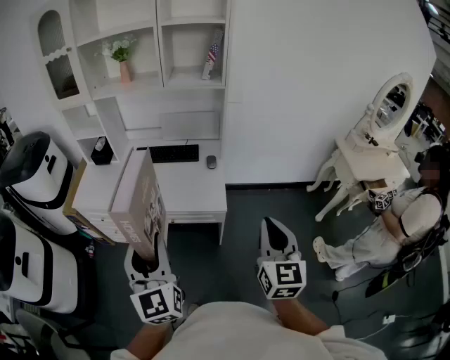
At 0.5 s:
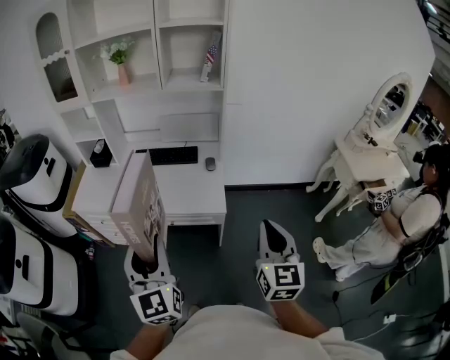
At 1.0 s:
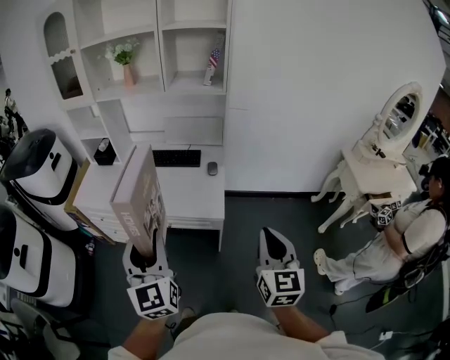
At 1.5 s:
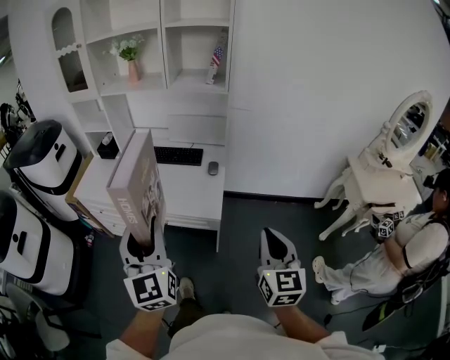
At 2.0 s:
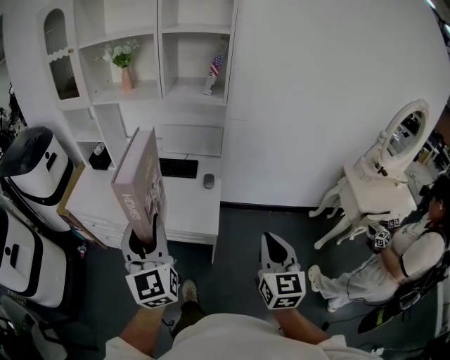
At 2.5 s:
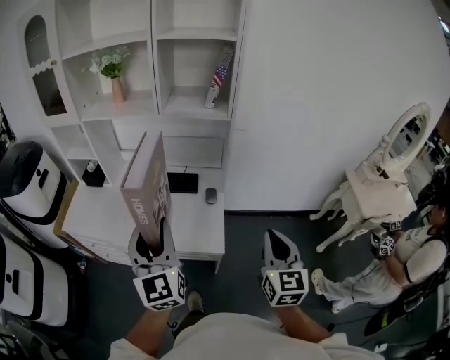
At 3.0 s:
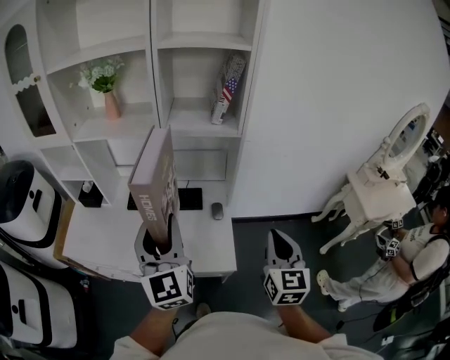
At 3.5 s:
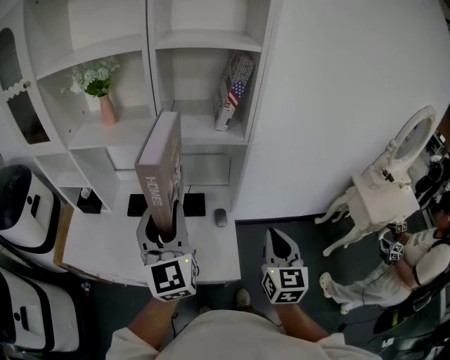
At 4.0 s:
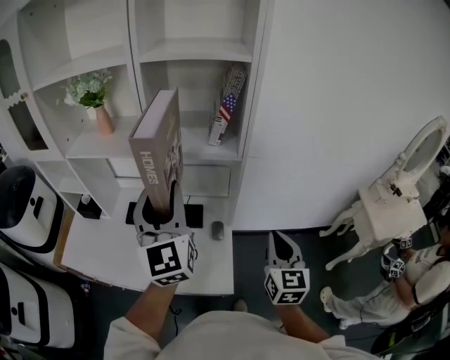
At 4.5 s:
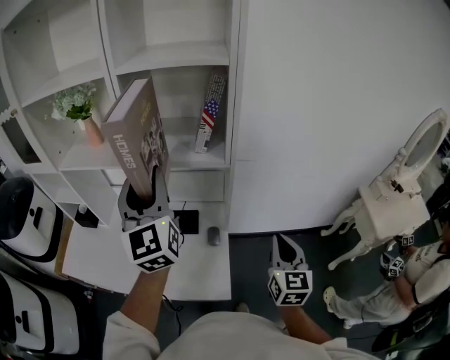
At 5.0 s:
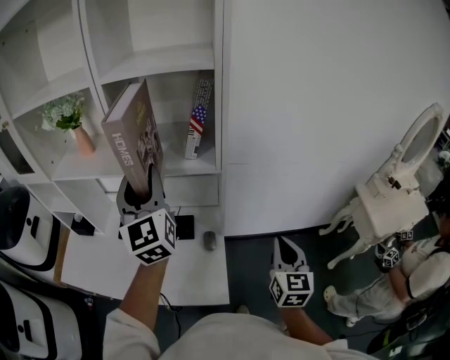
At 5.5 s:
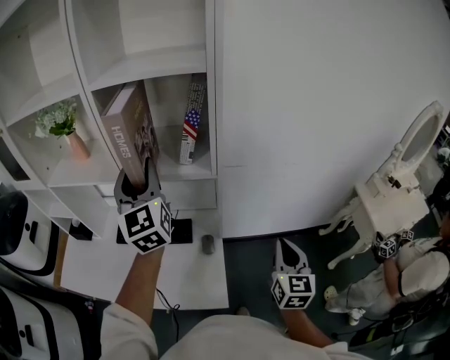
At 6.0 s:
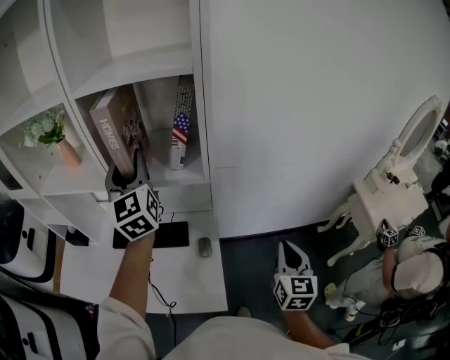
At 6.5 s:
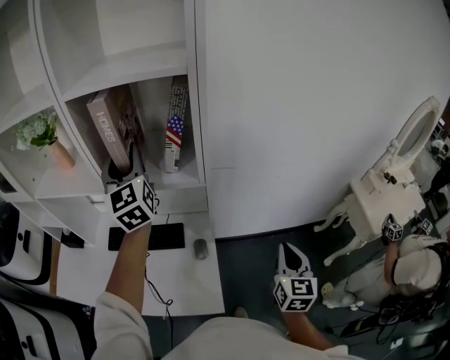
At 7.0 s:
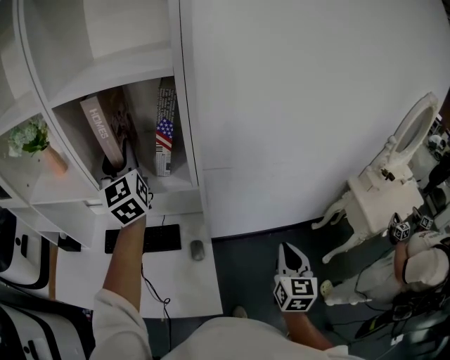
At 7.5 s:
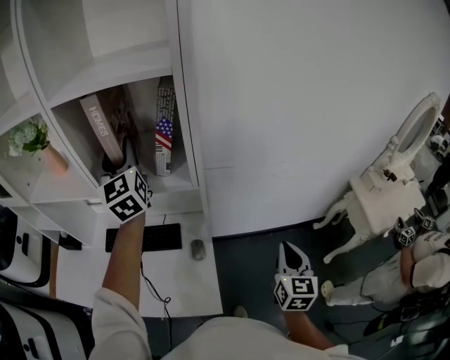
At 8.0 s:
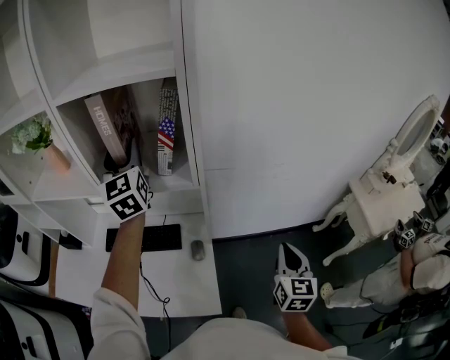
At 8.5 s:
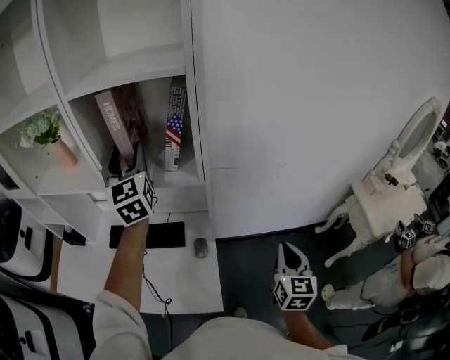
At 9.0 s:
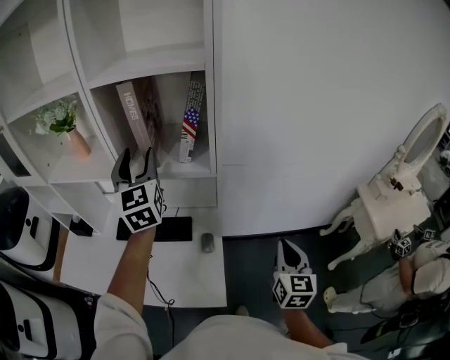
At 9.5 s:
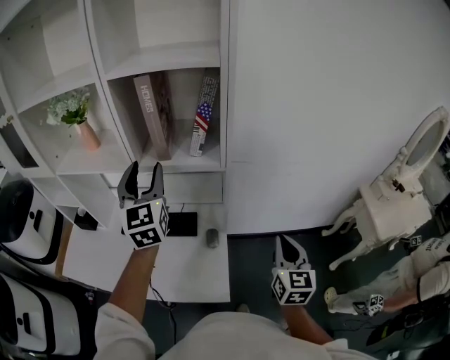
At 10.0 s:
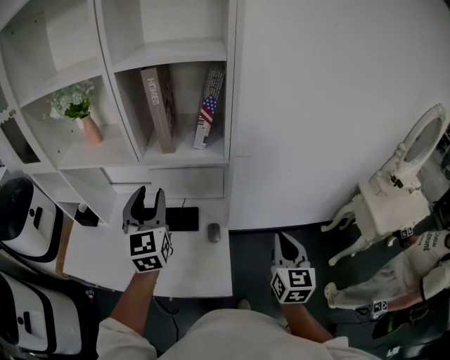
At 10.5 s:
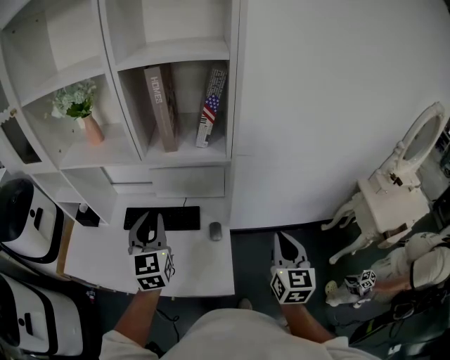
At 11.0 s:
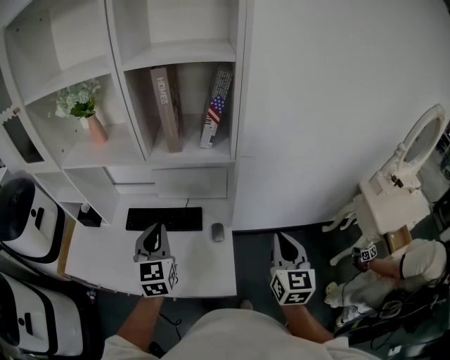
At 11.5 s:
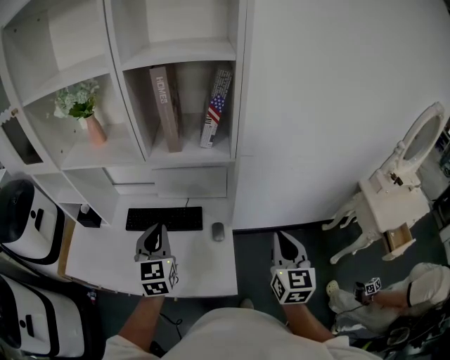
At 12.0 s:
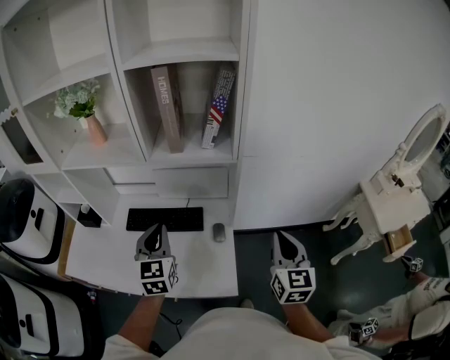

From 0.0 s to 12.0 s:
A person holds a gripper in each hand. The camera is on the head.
From 0.0 s to 2.0 s: The two grippers go approximately 10 cm forward and to the right.
From 2.0 s to 4.0 s: The grippers both shift forward by roughly 35 cm.
From 4.0 s to 6.0 s: The right gripper moves to the right, about 10 cm; the left gripper is displaced forward by roughly 20 cm.
From 6.0 s to 8.0 s: The left gripper moves forward, approximately 5 cm.
From 8.0 s to 10.0 s: The left gripper goes approximately 20 cm backward and downward, while the right gripper travels to the left by approximately 10 cm.
From 10.0 s to 12.0 s: The left gripper goes roughly 10 cm downward, and closes.

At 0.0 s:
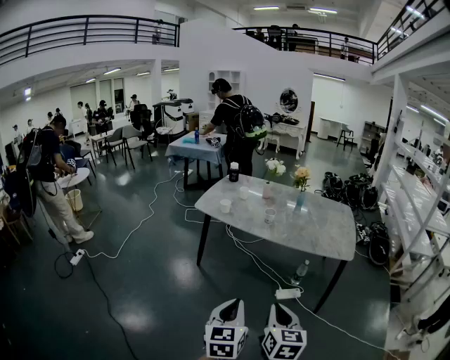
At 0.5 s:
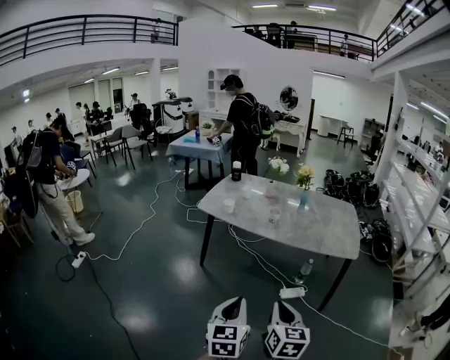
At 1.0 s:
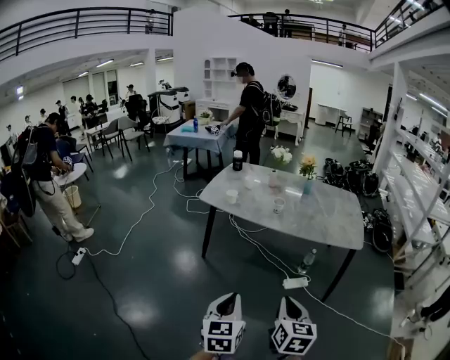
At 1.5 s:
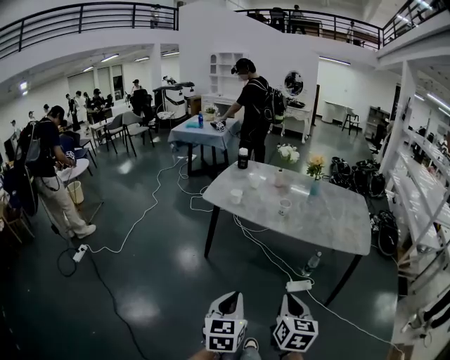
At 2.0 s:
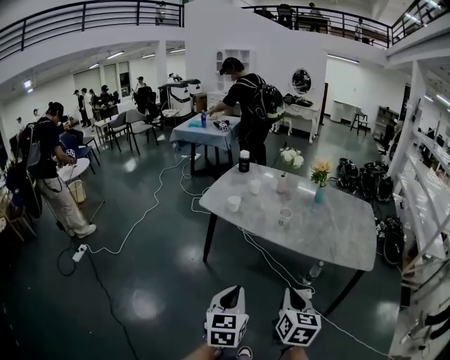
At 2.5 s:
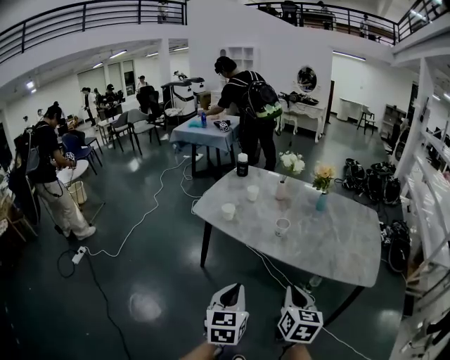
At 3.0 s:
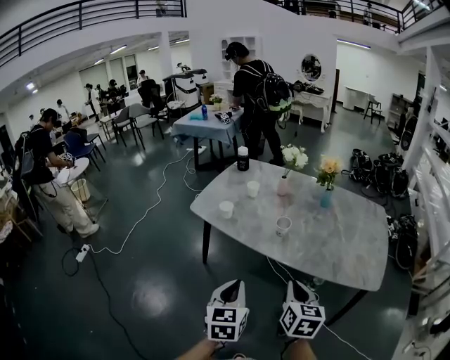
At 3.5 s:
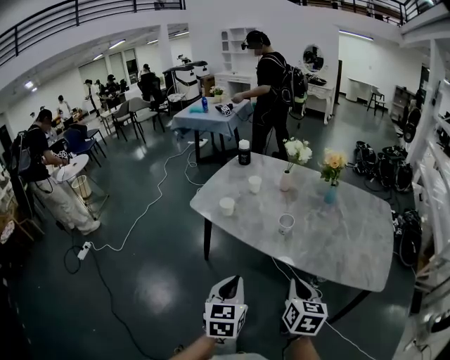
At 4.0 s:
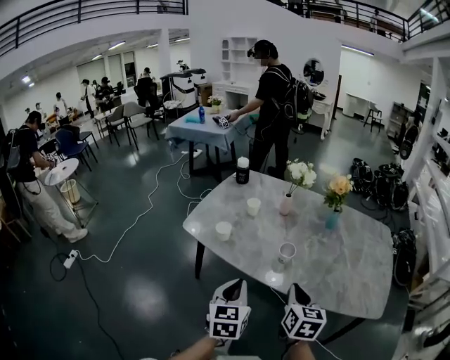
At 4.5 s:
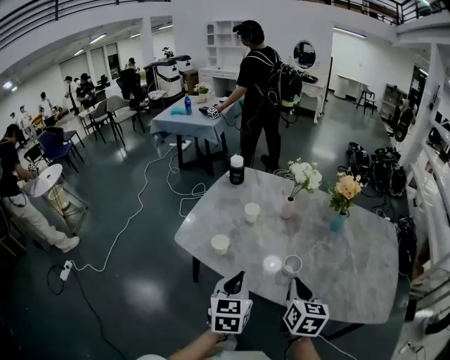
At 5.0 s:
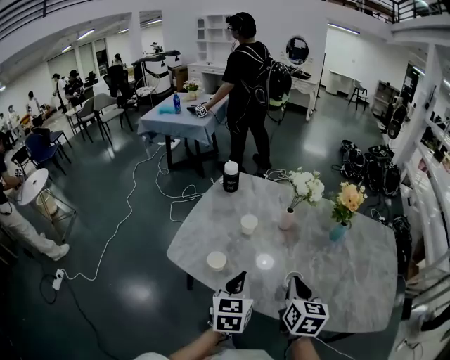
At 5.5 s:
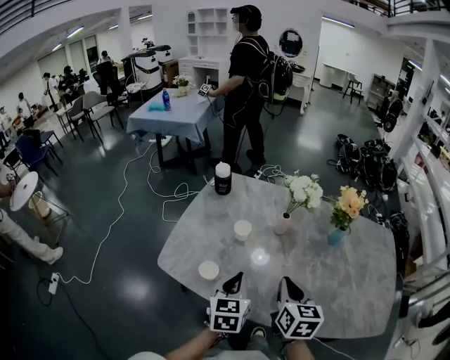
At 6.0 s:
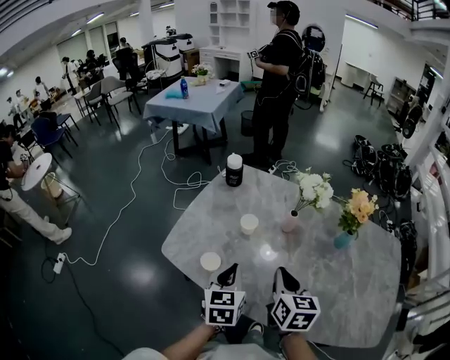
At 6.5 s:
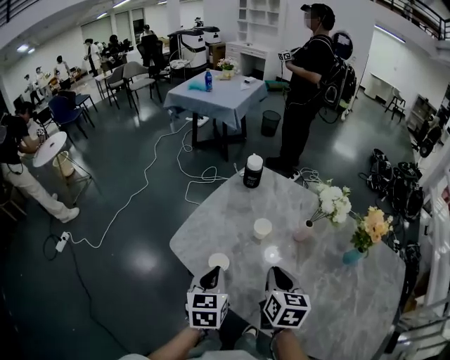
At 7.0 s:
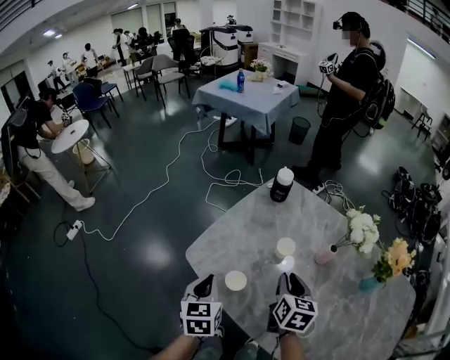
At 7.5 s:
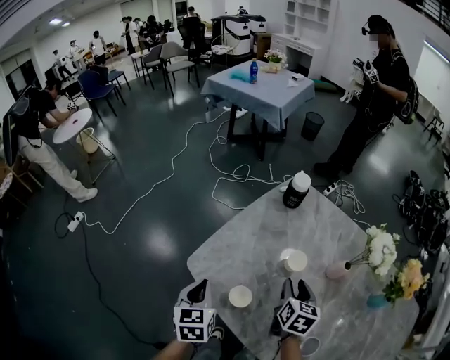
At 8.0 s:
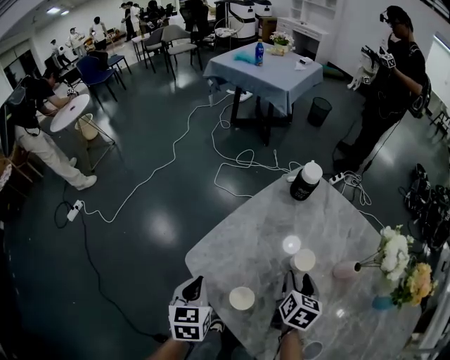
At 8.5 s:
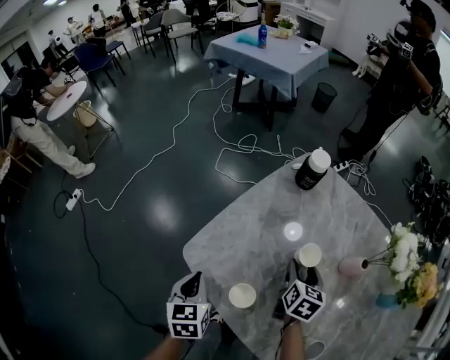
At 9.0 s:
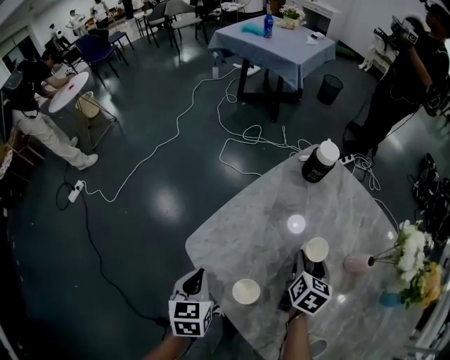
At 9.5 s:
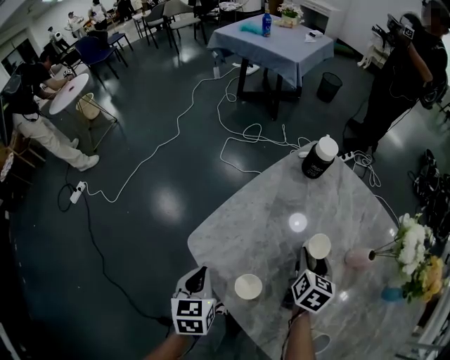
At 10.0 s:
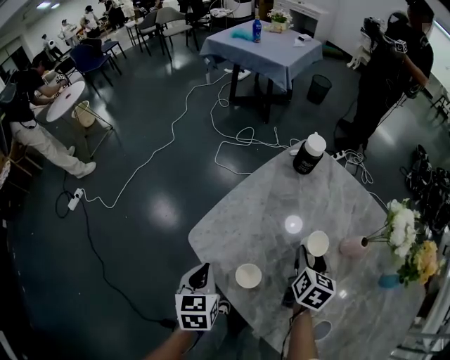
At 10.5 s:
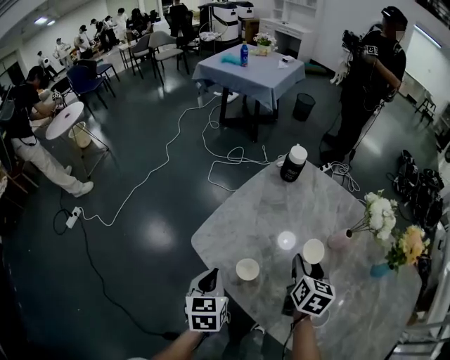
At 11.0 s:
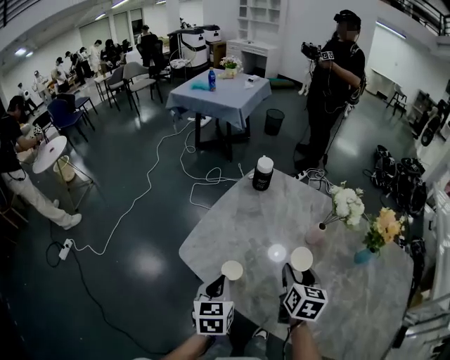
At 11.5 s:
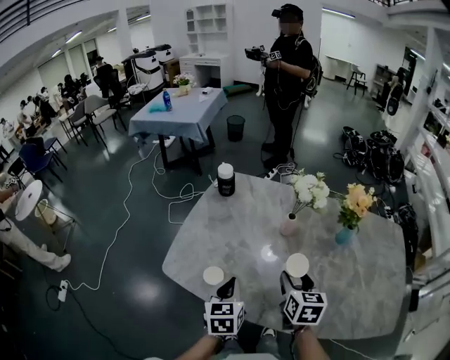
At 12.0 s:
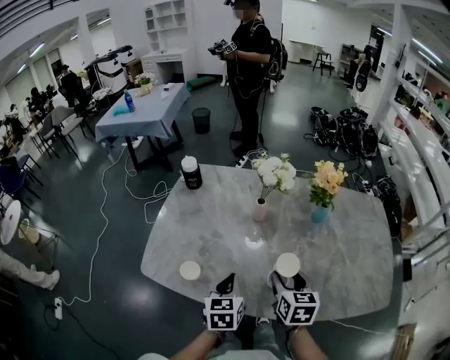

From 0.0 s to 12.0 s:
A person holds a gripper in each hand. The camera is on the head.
From 0.0 s to 2.0 s: The grippers both shift forward by about 20 cm.
From 2.0 s to 4.0 s: The grippers both shift forward by roughly 30 cm.
From 4.0 s to 6.0 s: The grippers both shift forward by some 25 cm.
From 6.0 s to 8.0 s: The right gripper heads forward and downward, covering about 25 cm, and opens up; the left gripper travels to the left and downward by some 25 cm, and turns by some 30 degrees.
From 8.0 s to 10.0 s: The grippers make only small movements.
From 10.0 s to 12.0 s: The left gripper moves approximately 30 cm, and rotates some 40 degrees. Meanwhile the right gripper shifts by some 30 cm.

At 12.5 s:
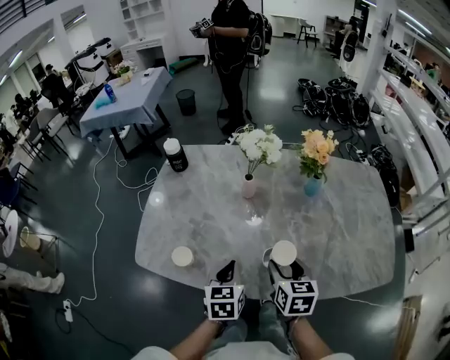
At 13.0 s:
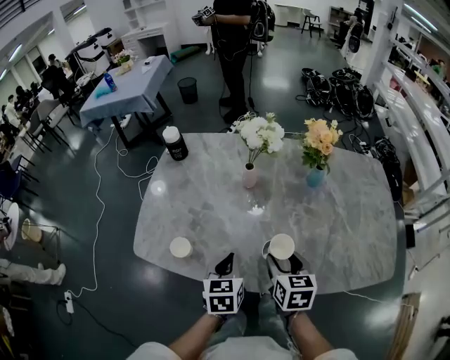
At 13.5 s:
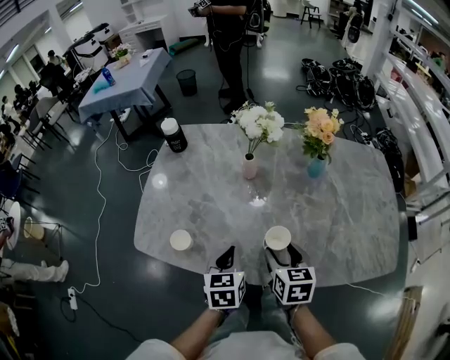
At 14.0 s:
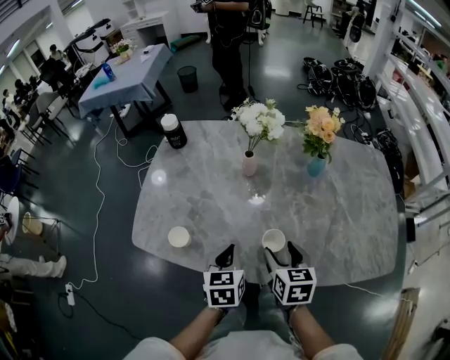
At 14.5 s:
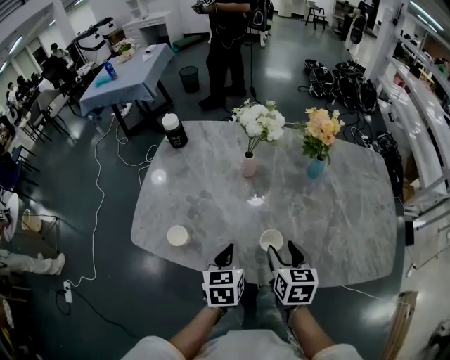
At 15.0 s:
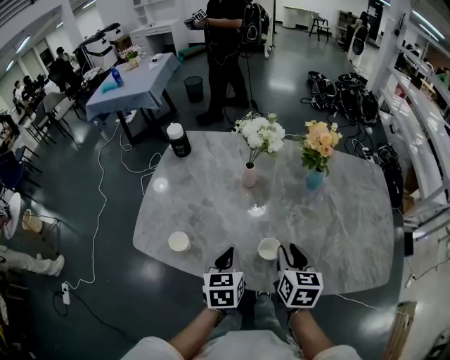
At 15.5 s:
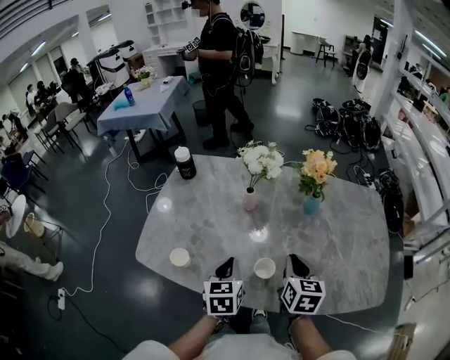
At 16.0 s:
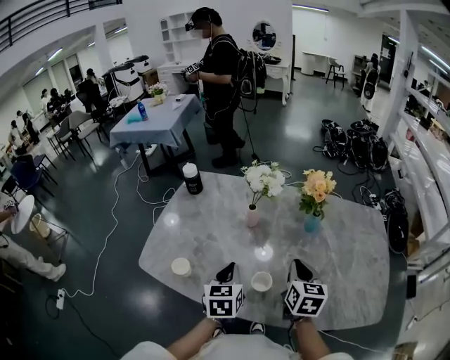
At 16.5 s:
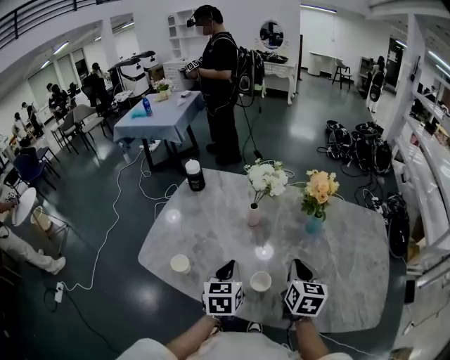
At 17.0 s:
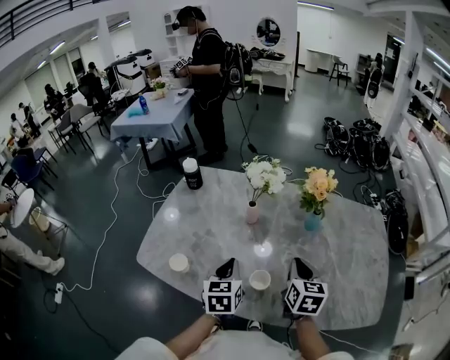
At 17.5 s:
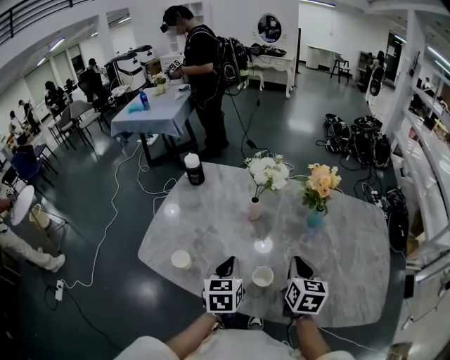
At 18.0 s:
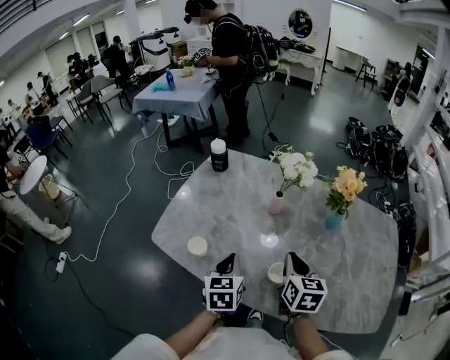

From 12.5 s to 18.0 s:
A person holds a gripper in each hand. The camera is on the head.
From 12.5 s to 14.5 s: The grippers move only a little.
From 14.5 s to 16.0 s: The left gripper goes approximately 5 cm upward; the right gripper shifts roughly 10 cm upward, to the right and forward, and closes its fingers.
From 16.0 s to 18.0 s: Both grippers travel together to the left, some 10 cm.
